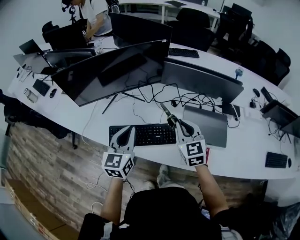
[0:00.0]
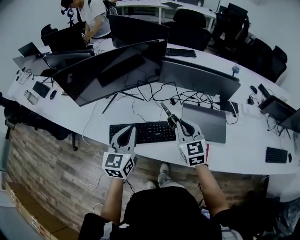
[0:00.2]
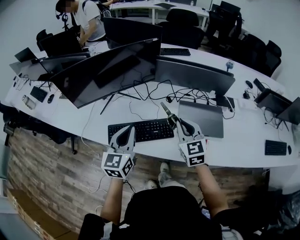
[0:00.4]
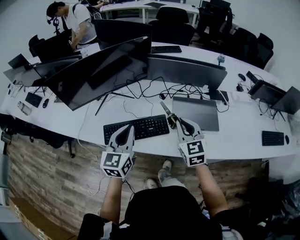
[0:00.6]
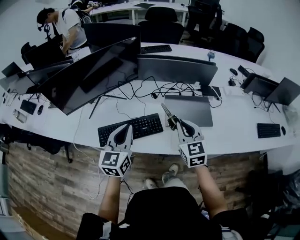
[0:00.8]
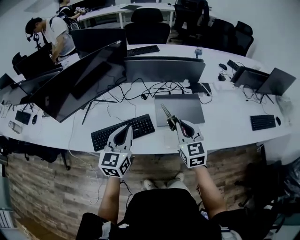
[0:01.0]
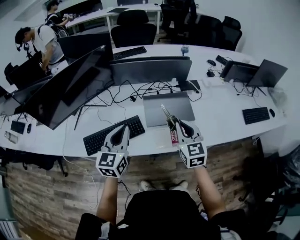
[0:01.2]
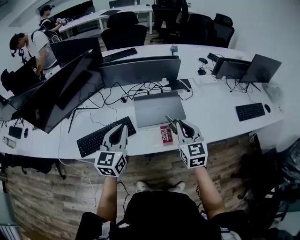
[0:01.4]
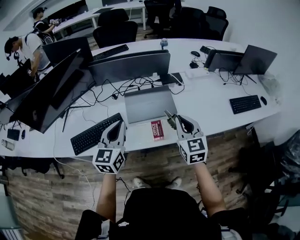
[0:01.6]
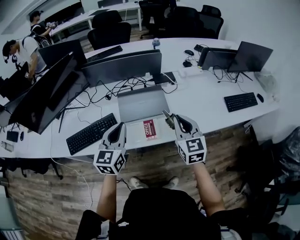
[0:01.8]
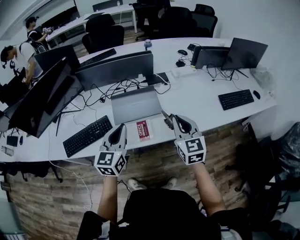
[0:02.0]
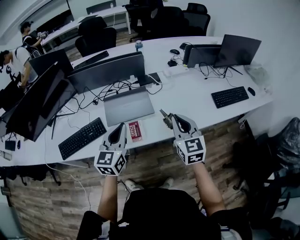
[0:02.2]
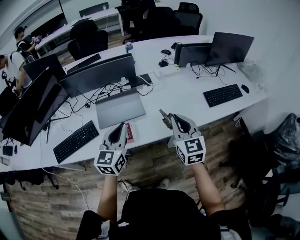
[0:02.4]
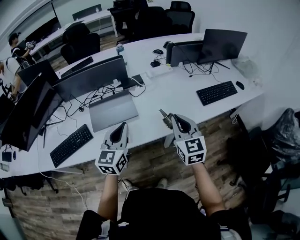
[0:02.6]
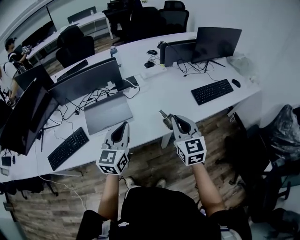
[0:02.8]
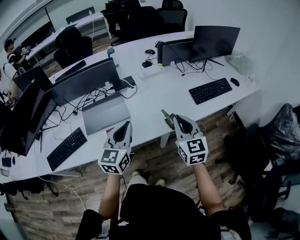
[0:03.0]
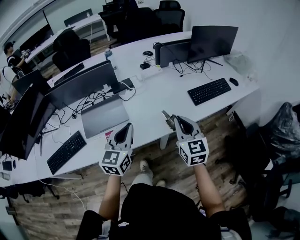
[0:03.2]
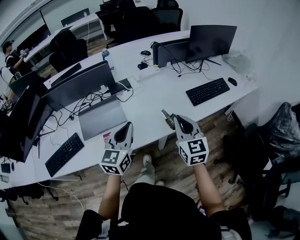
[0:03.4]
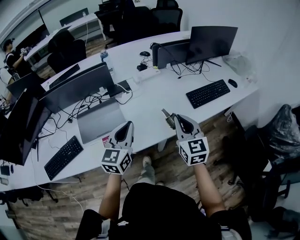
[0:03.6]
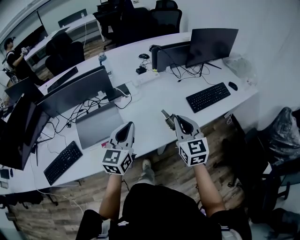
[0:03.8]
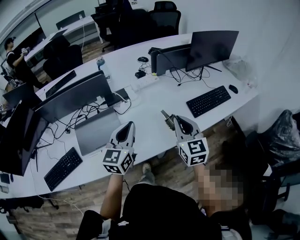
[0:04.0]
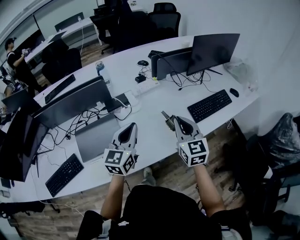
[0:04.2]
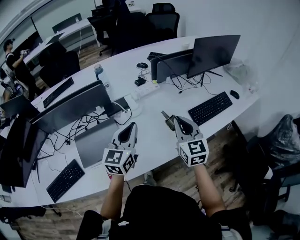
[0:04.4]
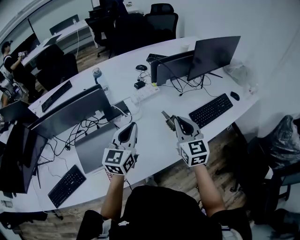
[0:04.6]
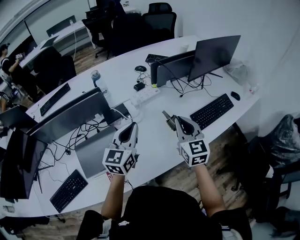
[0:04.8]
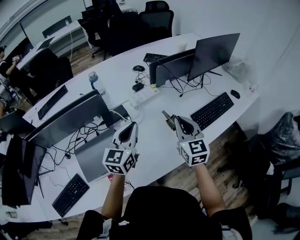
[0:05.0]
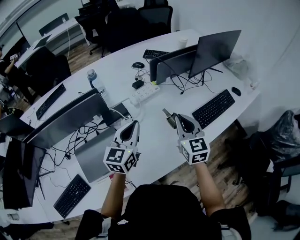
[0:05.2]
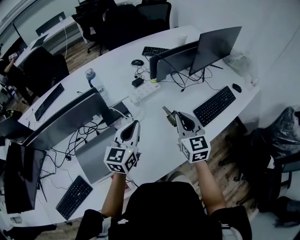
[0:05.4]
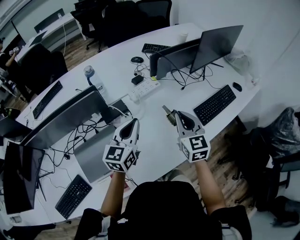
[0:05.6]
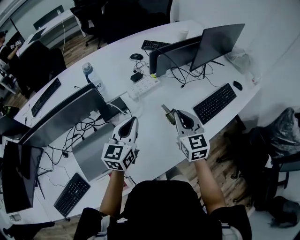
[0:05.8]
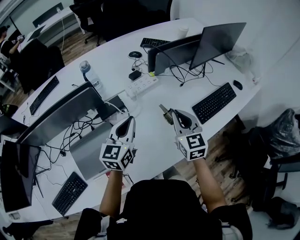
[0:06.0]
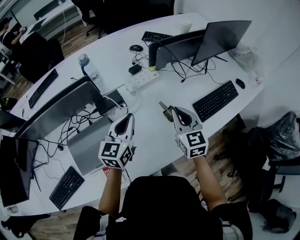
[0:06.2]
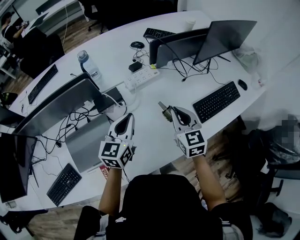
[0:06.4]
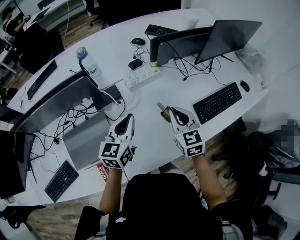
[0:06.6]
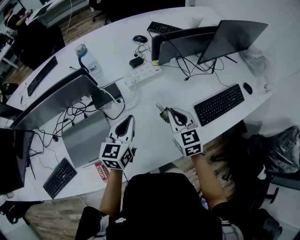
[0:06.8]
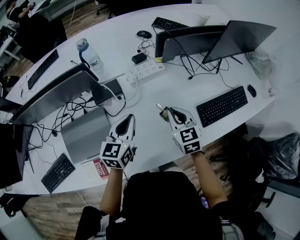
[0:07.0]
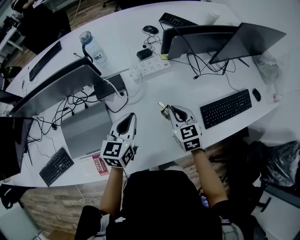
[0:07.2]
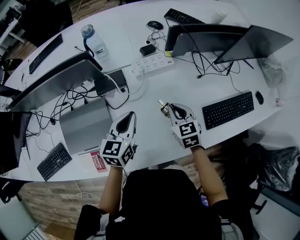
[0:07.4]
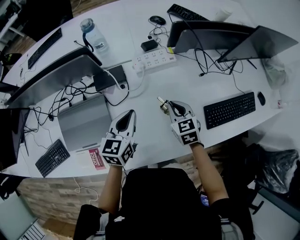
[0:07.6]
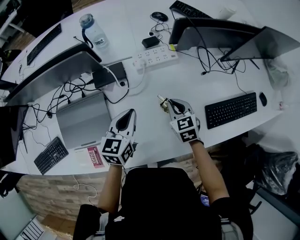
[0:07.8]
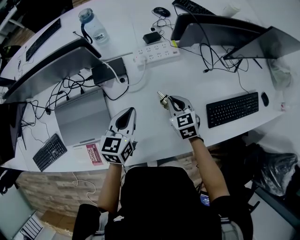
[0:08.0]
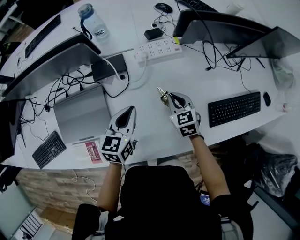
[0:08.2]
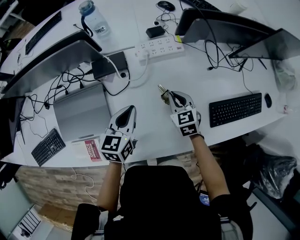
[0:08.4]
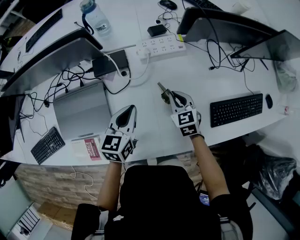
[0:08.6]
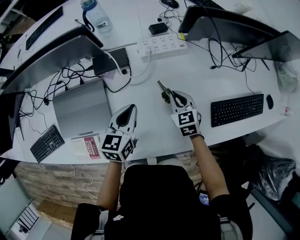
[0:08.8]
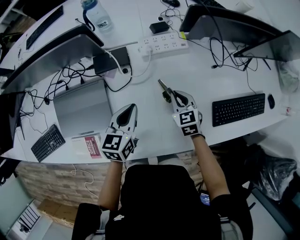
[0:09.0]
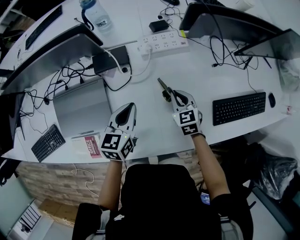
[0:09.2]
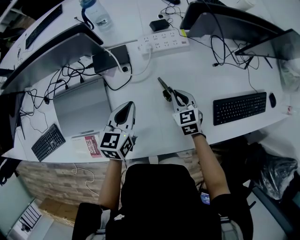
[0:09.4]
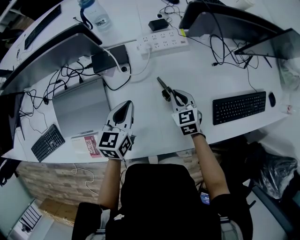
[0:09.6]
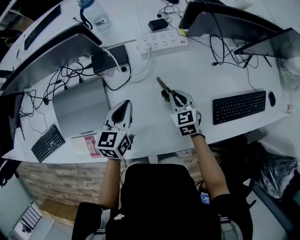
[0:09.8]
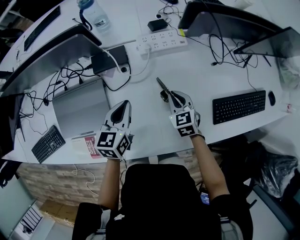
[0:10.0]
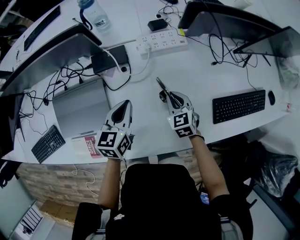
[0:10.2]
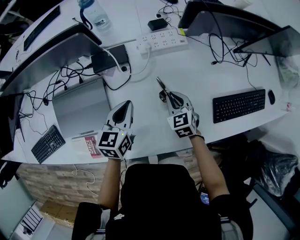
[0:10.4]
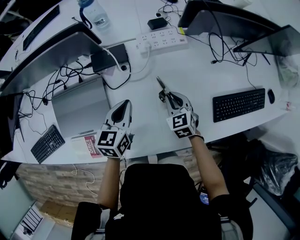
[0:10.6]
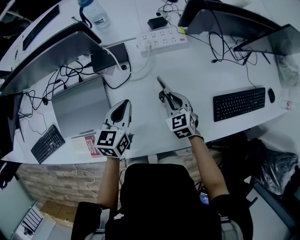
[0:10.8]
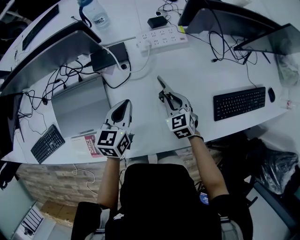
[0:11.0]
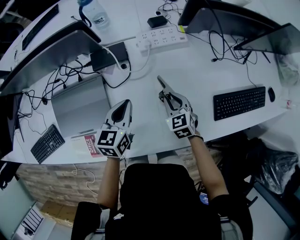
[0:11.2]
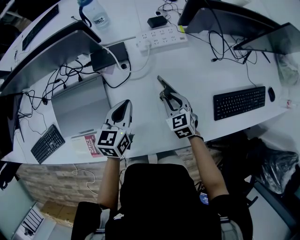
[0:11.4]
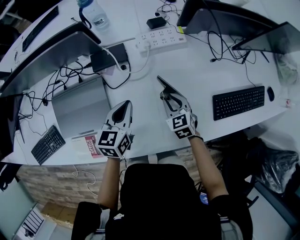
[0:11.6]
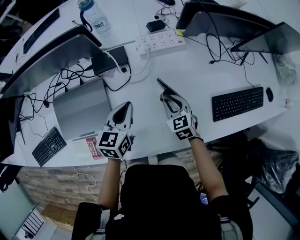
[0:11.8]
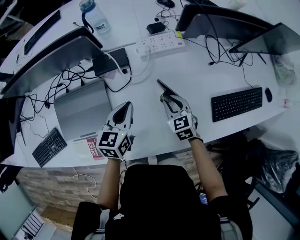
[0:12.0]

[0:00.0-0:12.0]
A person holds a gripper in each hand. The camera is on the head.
0:00.0 to 0:01.6: The right gripper moves to the right and backward, approximately 35 cm, and swivels roughly 30 degrees, while the left gripper travels to the right by roughly 25 cm, and rotates about 20 degrees.
0:01.6 to 0:03.0: Both grippers move to the right, roughly 35 cm.
0:03.0 to 0:04.4: The two grippers go some 20 cm forward.
0:04.4 to 0:06.0: Both grippers travel together forward and downward, about 10 cm.
0:06.0 to 0:07.6: The left gripper moves downward, about 10 cm, and changes its angle by about 20 degrees; the right gripper is displaced downward and forward by some 20 cm, and rotates some 30 degrees.
0:07.6 to 0:09.0: The two grippers go some 5 cm downward.
0:09.0 to 0:12.0: There are only small adjustments of the grippers.

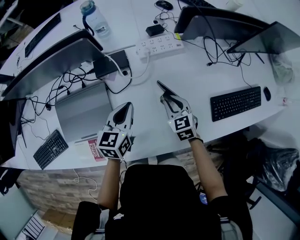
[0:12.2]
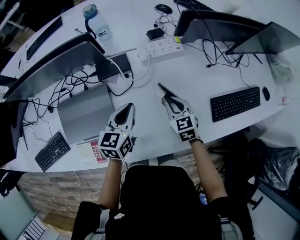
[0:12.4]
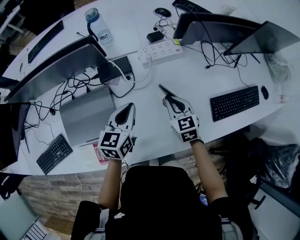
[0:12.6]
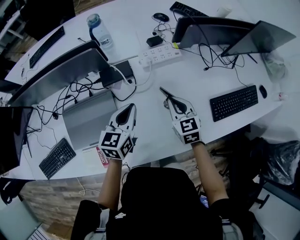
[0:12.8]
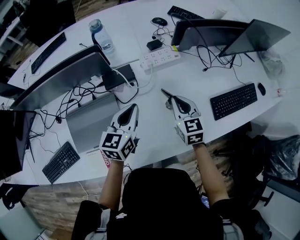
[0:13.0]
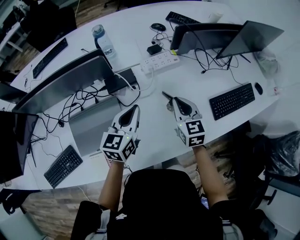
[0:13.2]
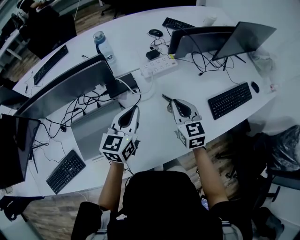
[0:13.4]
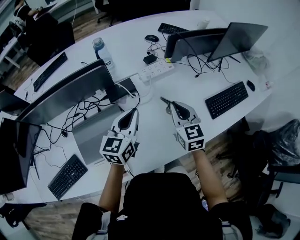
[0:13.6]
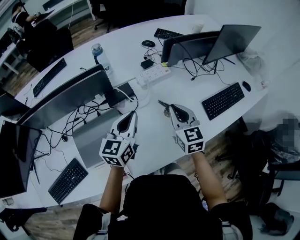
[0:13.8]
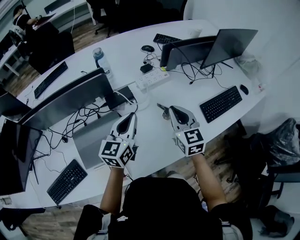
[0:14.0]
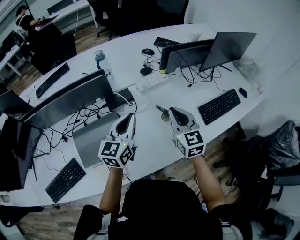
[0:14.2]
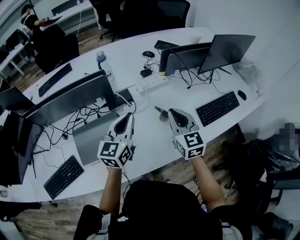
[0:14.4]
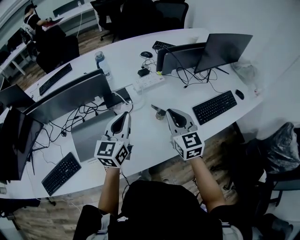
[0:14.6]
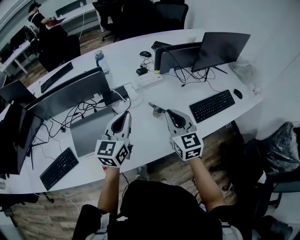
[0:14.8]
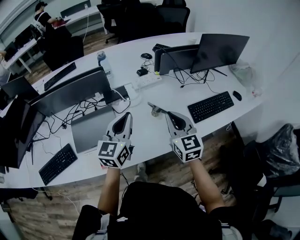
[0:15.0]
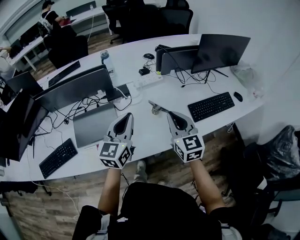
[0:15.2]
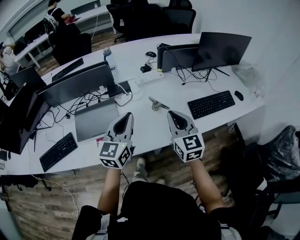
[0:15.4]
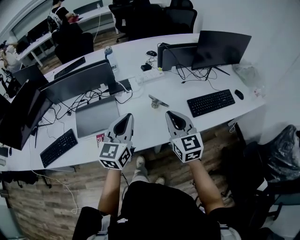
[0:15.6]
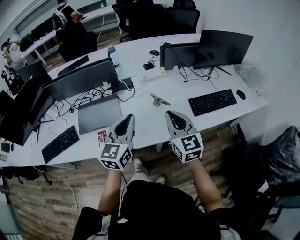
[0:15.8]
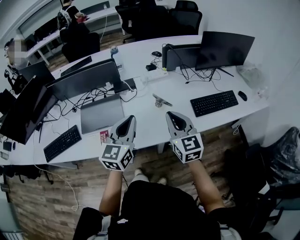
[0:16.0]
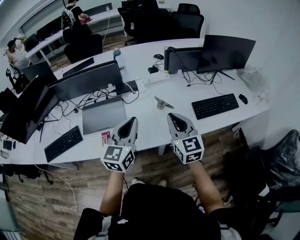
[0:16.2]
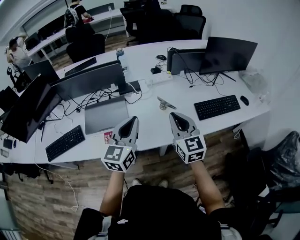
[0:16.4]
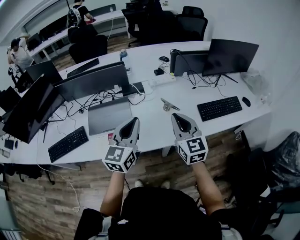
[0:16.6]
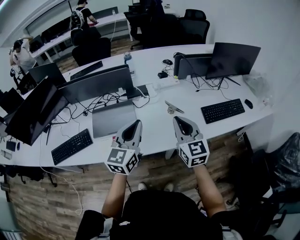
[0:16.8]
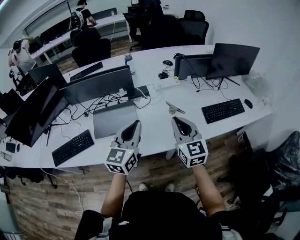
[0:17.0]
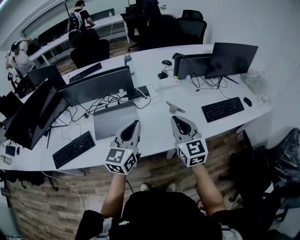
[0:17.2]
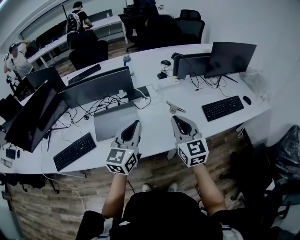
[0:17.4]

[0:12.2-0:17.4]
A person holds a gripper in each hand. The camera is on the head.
0:12.2 to 0:14.0: The grippers both shift upward by some 20 cm. The left gripper changes its angle by roughly 20 degrees; the right gripper swivels some 30 degrees.
0:14.0 to 0:15.6: Both grippers move backward and to the right, roughly 20 cm.
0:15.6 to 0:17.4: Both grippers travel together to the left, some 10 cm.

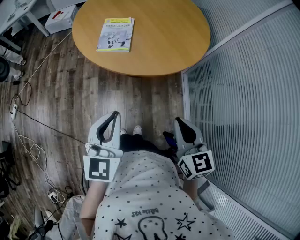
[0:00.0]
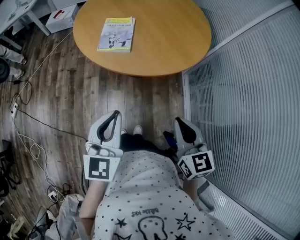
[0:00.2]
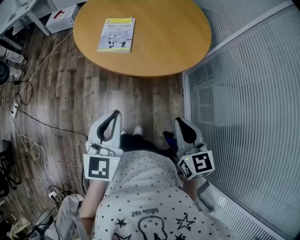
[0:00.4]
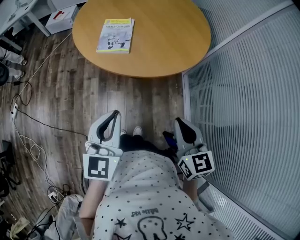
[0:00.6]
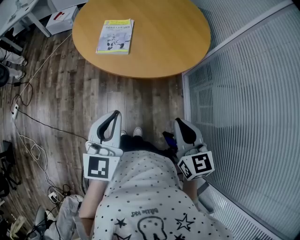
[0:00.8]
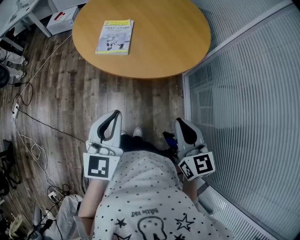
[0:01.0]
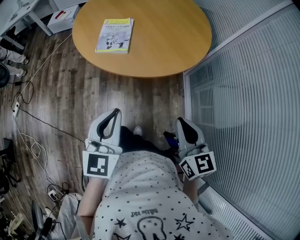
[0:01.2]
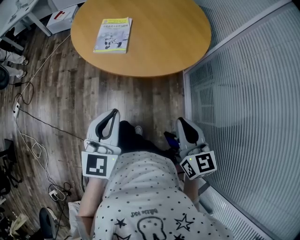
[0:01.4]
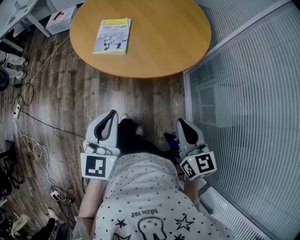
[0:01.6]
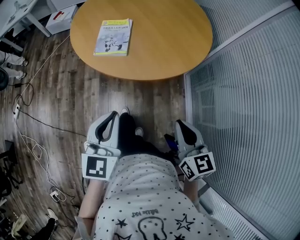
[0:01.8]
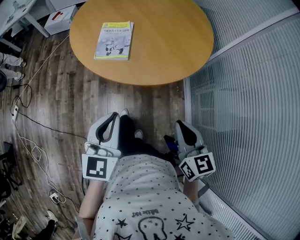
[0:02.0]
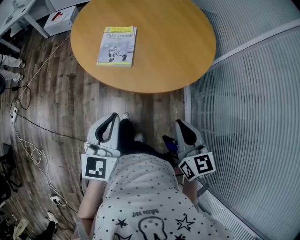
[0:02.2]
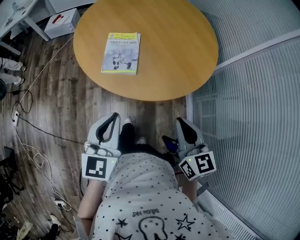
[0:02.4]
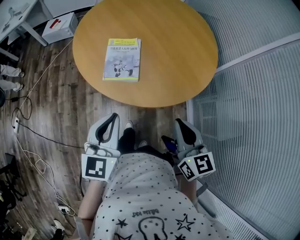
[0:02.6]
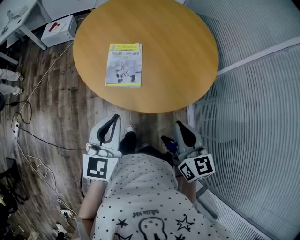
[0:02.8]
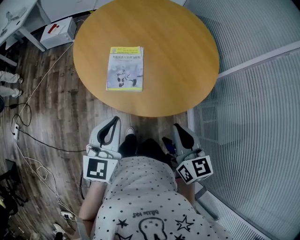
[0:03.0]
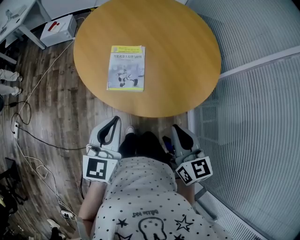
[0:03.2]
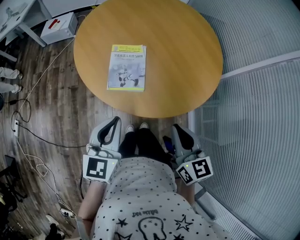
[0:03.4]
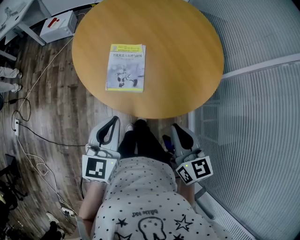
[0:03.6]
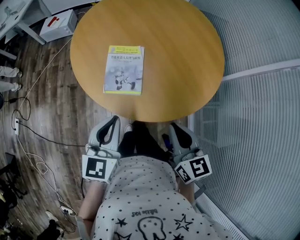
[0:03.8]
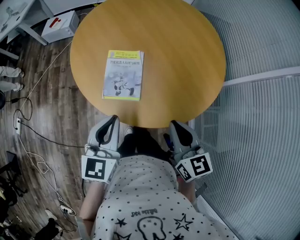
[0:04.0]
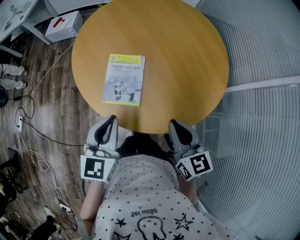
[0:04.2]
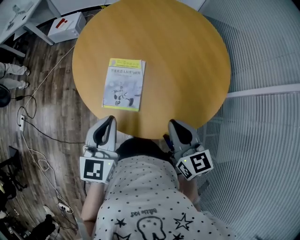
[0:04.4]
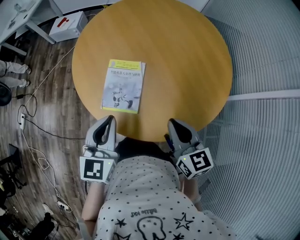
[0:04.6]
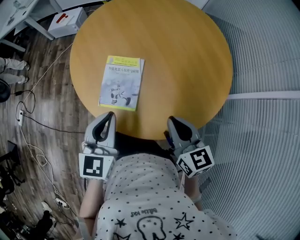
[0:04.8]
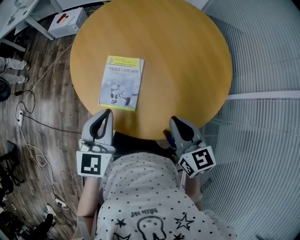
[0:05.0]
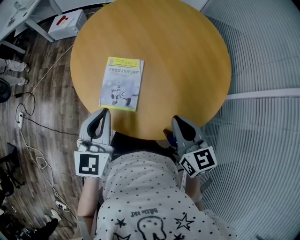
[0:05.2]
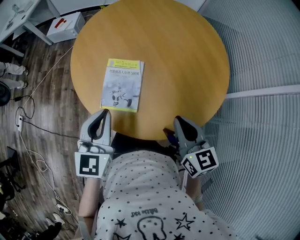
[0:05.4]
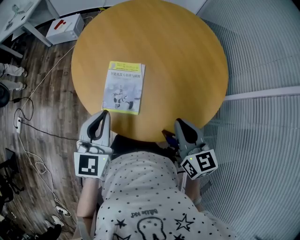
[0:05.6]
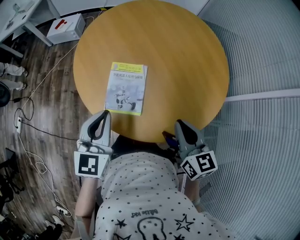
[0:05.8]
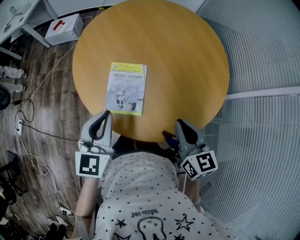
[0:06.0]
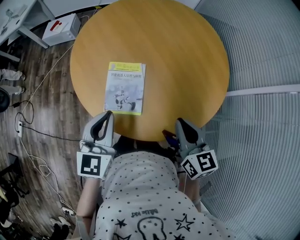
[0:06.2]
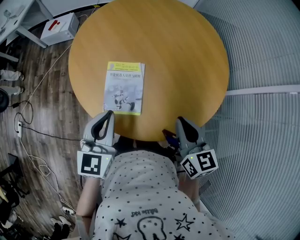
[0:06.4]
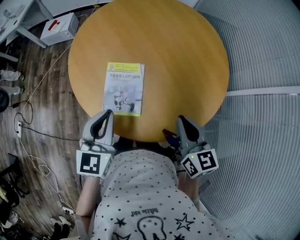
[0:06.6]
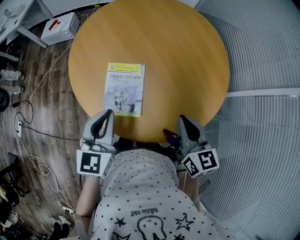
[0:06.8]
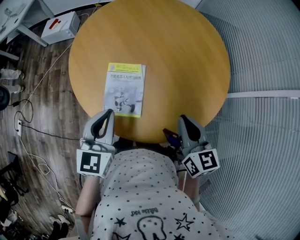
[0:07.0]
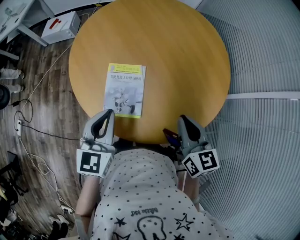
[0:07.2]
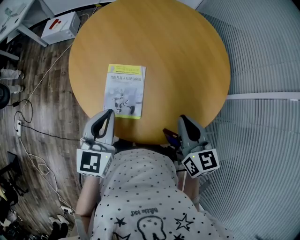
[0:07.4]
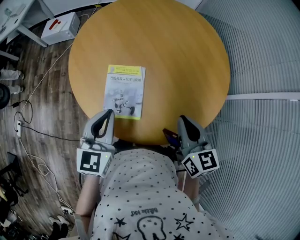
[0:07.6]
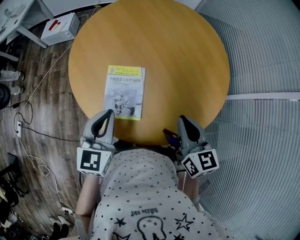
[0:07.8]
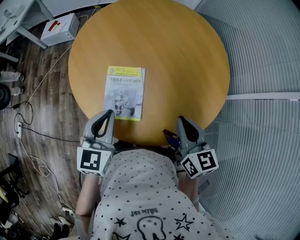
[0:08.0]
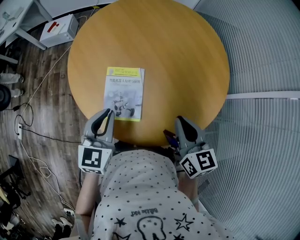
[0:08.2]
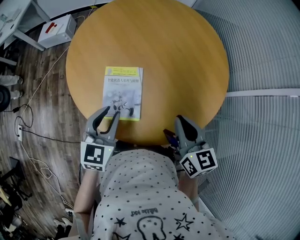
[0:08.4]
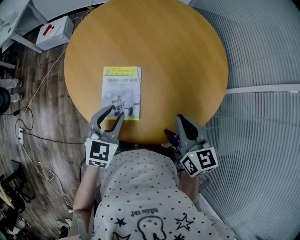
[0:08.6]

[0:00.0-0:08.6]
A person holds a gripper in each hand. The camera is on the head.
0:00.0 to 0:01.4: The grippers make only small movements.
0:01.4 to 0:02.8: Both grippers move forward and to the left, about 20 cm.
0:02.8 to 0:04.4: Both grippers move forward, some 15 cm.
0:04.4 to 0:05.8: The grippers move only a little.
0:05.8 to 0:07.2: The grippers stay close to where they were, moving slightly.
0:07.2 to 0:08.6: The left gripper is displaced downward by roughly 5 cm, and opens.
